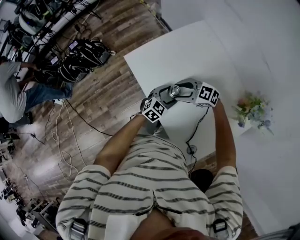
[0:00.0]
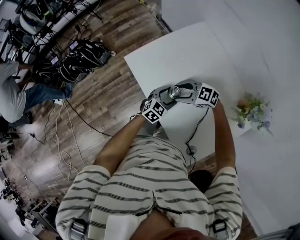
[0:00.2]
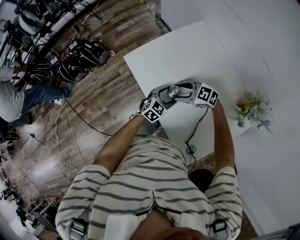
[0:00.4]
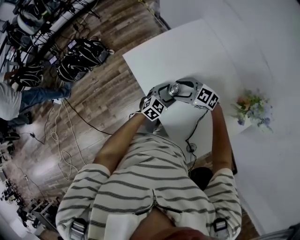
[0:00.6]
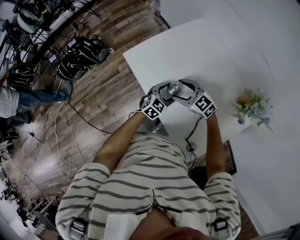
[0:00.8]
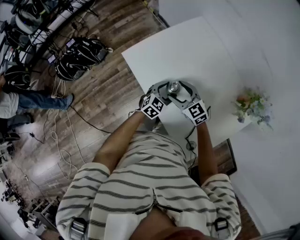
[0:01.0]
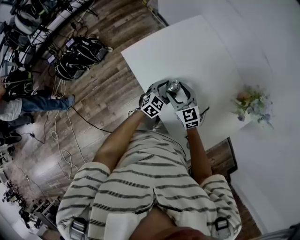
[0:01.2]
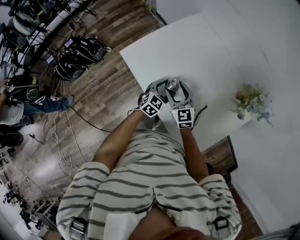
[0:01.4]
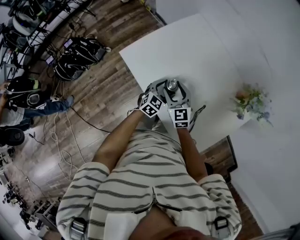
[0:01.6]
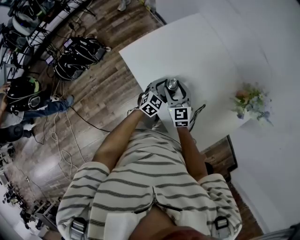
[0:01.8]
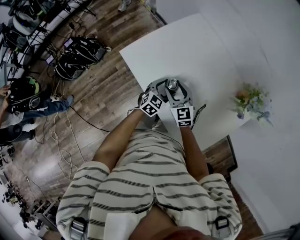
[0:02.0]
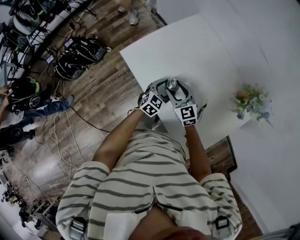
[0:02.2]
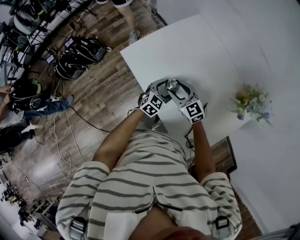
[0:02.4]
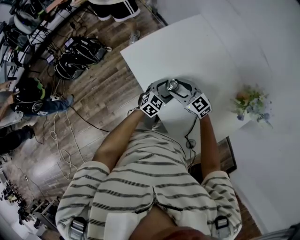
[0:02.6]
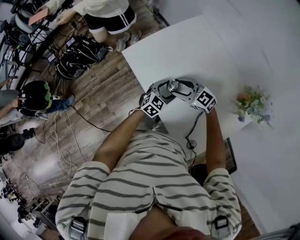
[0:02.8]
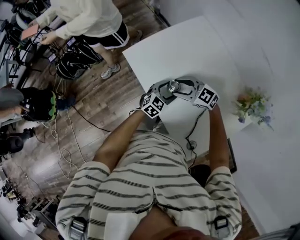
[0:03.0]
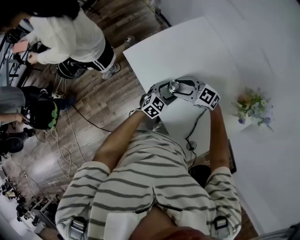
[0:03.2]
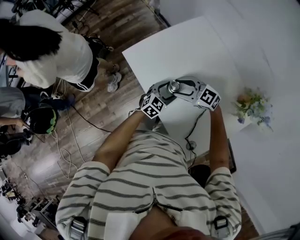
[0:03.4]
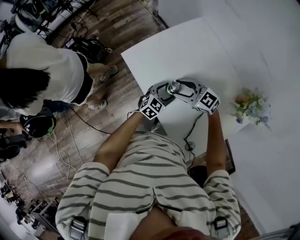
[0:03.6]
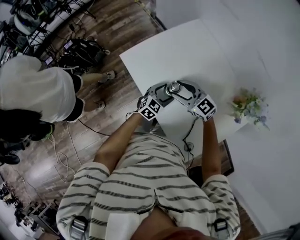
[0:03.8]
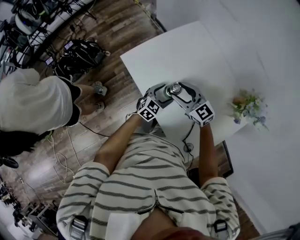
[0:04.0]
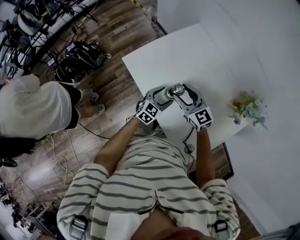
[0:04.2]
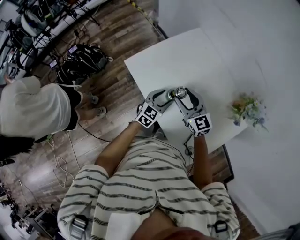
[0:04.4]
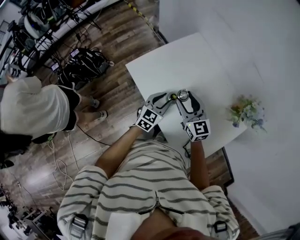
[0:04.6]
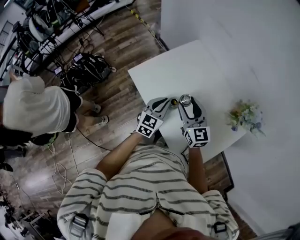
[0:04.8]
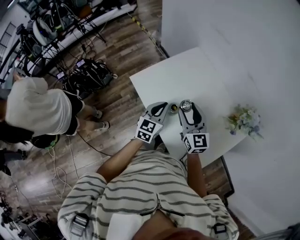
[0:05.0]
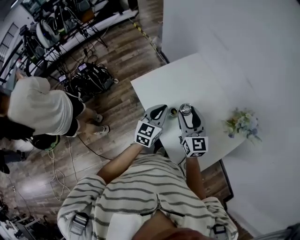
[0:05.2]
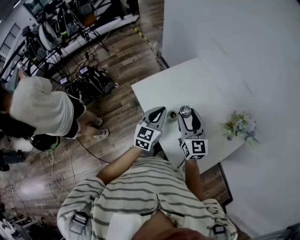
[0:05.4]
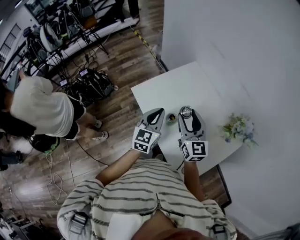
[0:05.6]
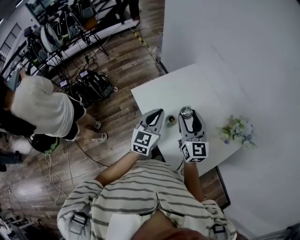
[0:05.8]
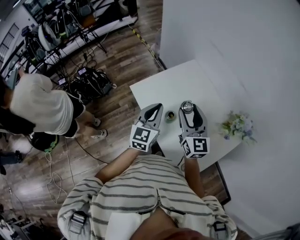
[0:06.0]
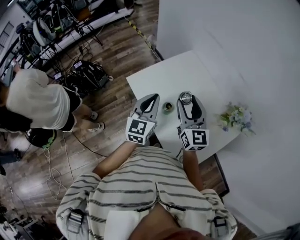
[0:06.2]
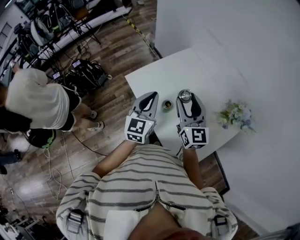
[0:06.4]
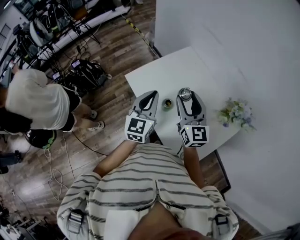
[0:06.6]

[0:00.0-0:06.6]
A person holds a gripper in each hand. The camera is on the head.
0:00.0 to 0:01.6: The right gripper swivels about 60 degrees.
0:01.6 to 0:03.2: The right gripper swivels about 60 degrees.
0:03.2 to 0:05.0: Both grippers travel together upward, about 15 cm. The left gripper swivels approximately 30 degrees, and closes up. Meanwhile the right gripper turns by approximately 60 degrees.
0:05.0 to 0:06.6: Both grippers travel together upward, roughly 10 cm.

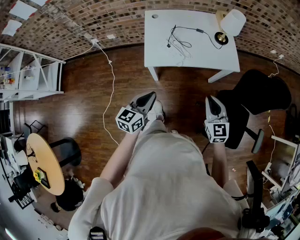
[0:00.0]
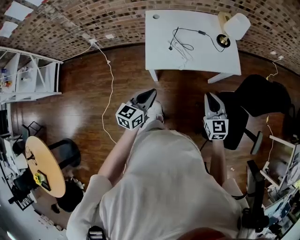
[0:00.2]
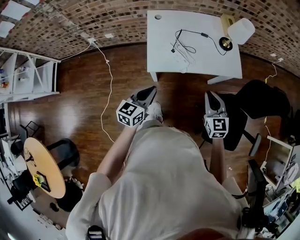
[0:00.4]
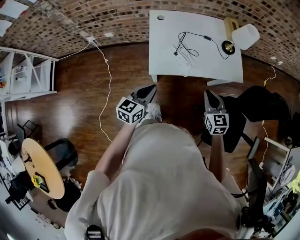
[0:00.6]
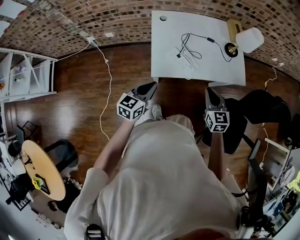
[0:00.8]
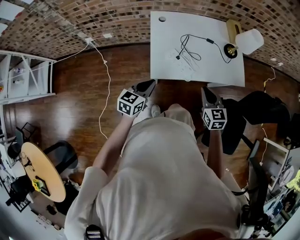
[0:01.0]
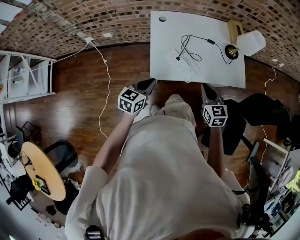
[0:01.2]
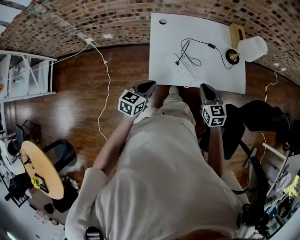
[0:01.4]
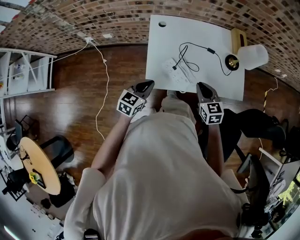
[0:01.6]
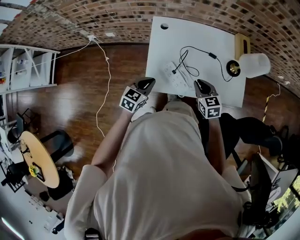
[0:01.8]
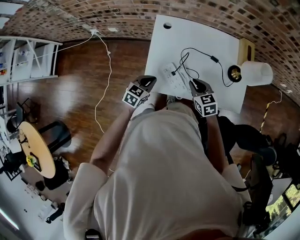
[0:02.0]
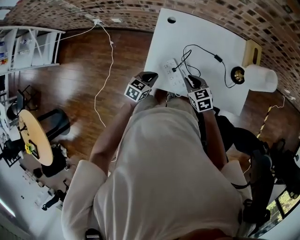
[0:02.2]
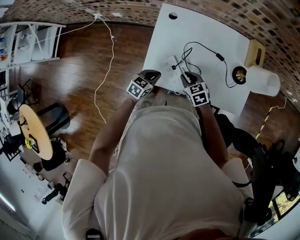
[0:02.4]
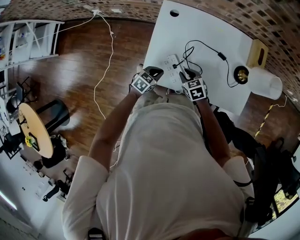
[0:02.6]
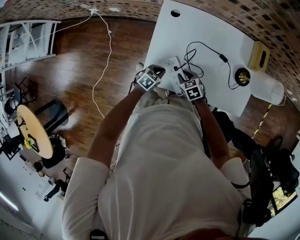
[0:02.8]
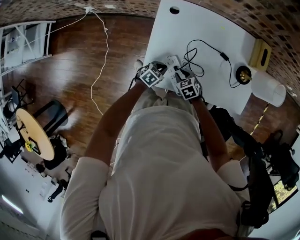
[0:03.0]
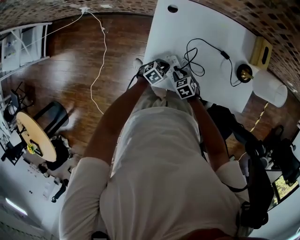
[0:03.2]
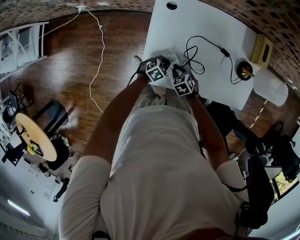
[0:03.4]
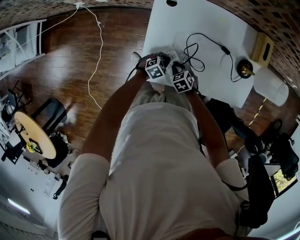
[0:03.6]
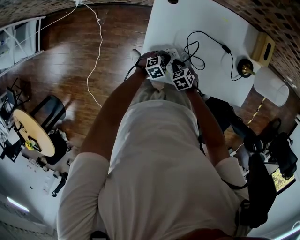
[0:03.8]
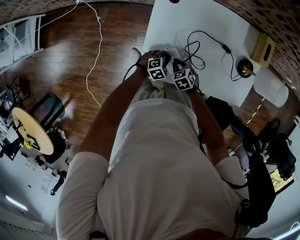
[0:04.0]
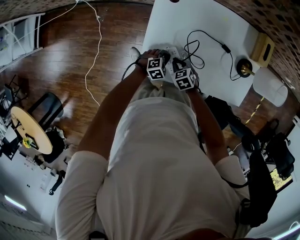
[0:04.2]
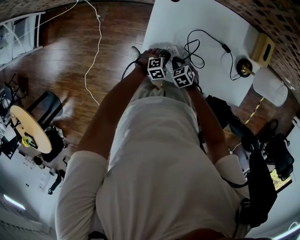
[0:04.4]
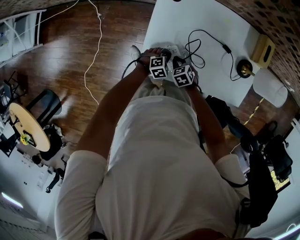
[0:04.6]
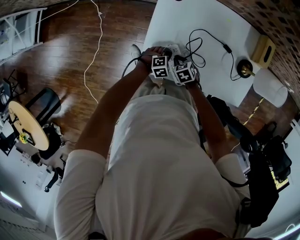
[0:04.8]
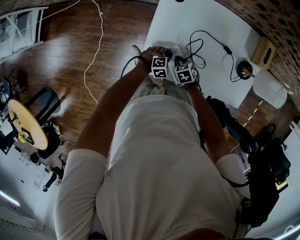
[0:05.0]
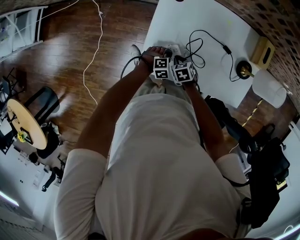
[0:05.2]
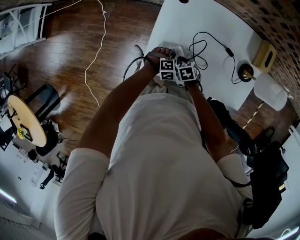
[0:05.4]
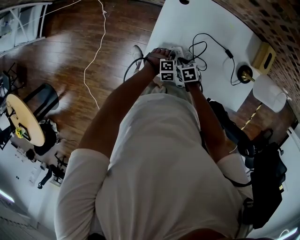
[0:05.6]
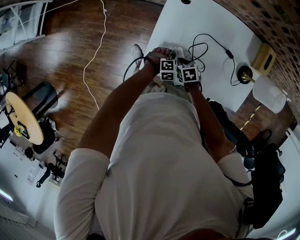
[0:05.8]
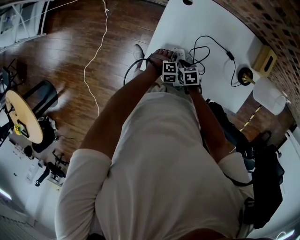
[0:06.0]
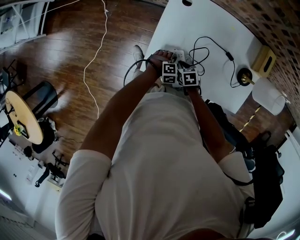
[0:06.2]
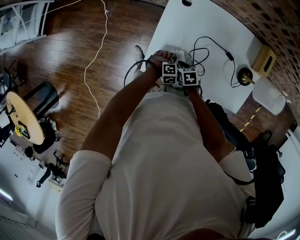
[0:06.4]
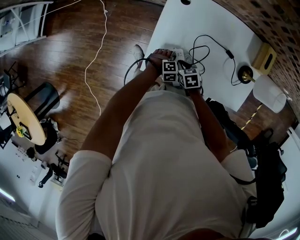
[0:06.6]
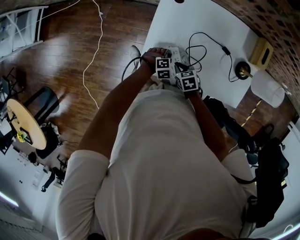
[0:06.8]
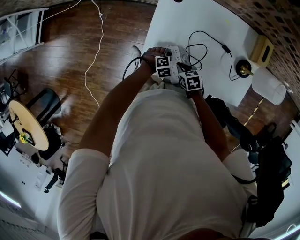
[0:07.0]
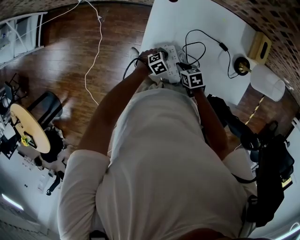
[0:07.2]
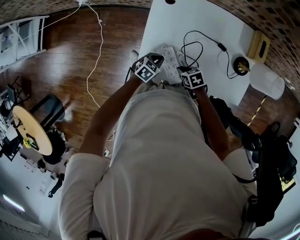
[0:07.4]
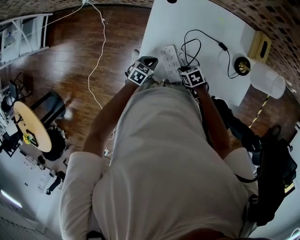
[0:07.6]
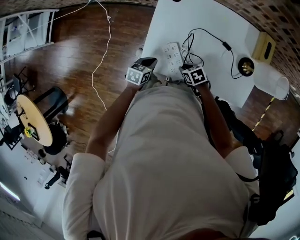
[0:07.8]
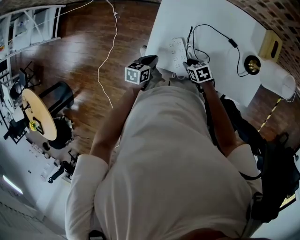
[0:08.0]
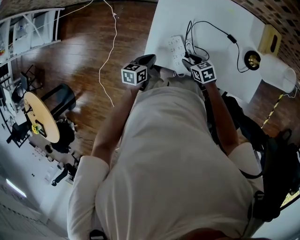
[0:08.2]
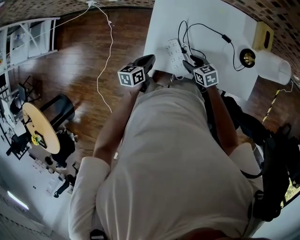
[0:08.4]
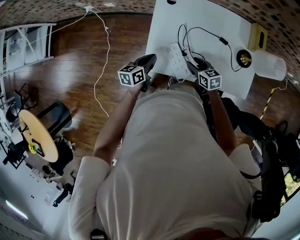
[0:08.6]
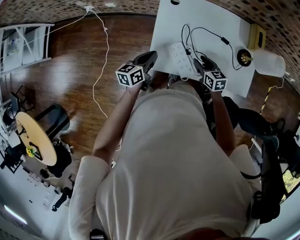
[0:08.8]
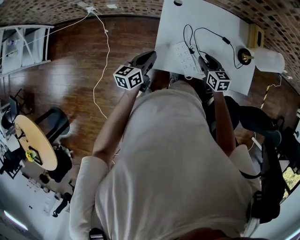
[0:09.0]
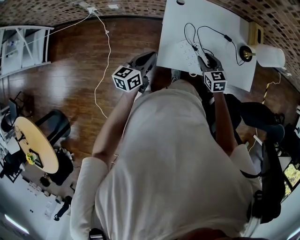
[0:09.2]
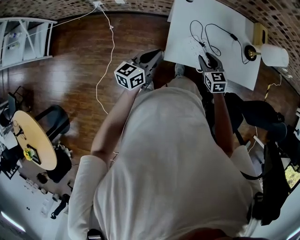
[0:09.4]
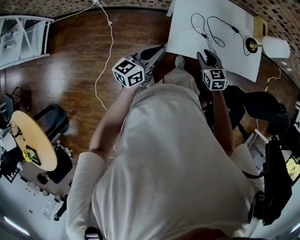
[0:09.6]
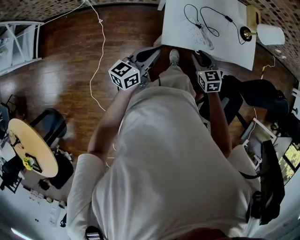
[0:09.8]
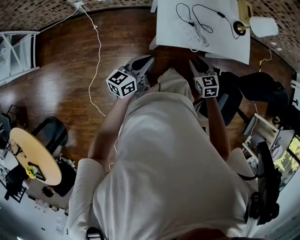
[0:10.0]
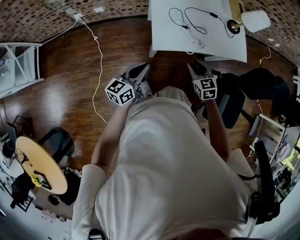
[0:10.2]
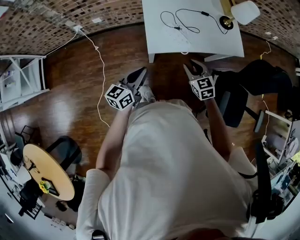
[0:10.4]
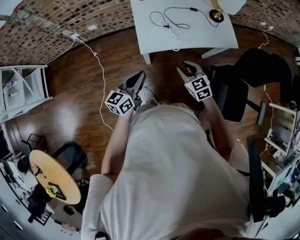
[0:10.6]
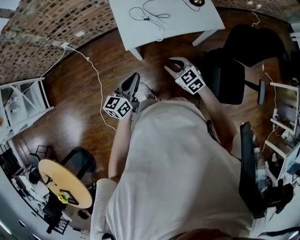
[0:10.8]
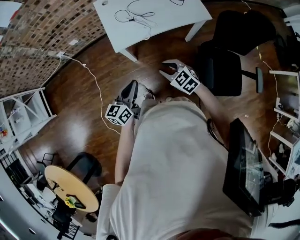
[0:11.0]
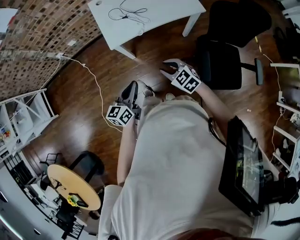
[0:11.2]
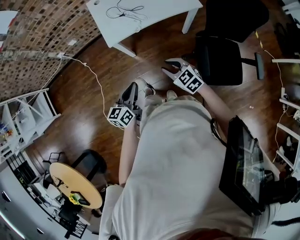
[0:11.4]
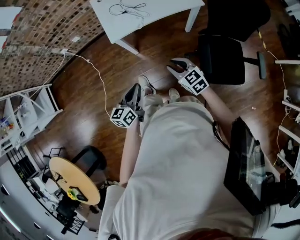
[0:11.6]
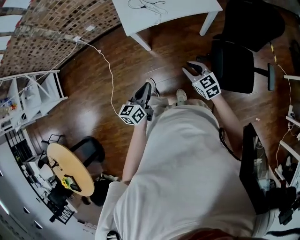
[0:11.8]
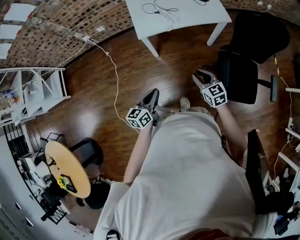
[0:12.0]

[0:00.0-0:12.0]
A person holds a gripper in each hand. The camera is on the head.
0:00.0 to 0:01.6: The right gripper travels forward and to the left by some 30 cm, while the left gripper heads forward, to the left and downward, covering some 30 cm.
0:01.6 to 0:03.0: Both grippers move downward, some 25 cm. The left gripper turns by some 30 degrees. The right gripper turns by some 40 degrees.
0:03.0 to 0:04.4: The left gripper swivels approximately 30 degrees.
0:04.4 to 0:06.0: There are only small adjustments of the grippers.
0:06.0 to 0:07.6: The right gripper moves approximately 5 cm. The left gripper goes approximately 5 cm upward, and twists about 50 degrees counterclockwise, seen from behind.
0:07.6 to 0:09.0: The grippers both shift upward by about 15 cm. The right gripper rotates about 40 degrees, and opens its fingers; the left gripper points its fingers roughly 30 degrees further upward.
0:09.0 to 0:10.4: Both grippers travel together backward, about 25 cm.
0:10.4 to 0:12.0: The grippers both shift backward and to the right by approximately 30 cm.

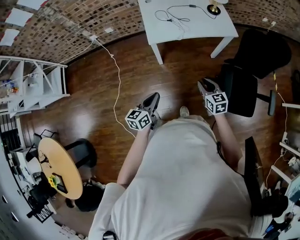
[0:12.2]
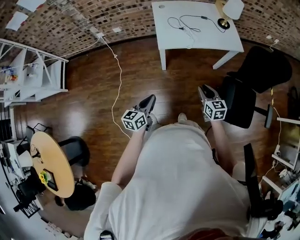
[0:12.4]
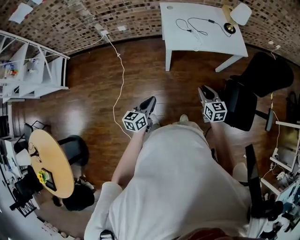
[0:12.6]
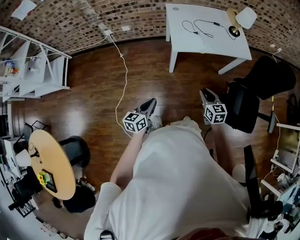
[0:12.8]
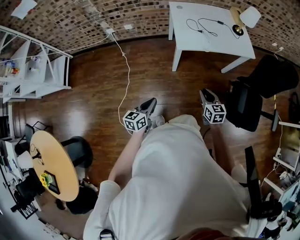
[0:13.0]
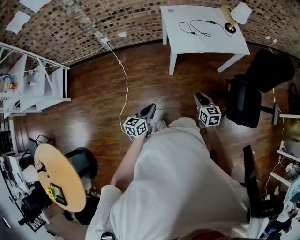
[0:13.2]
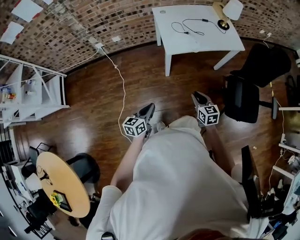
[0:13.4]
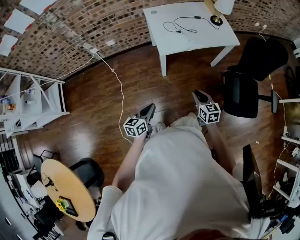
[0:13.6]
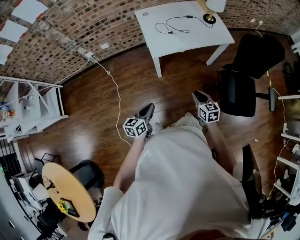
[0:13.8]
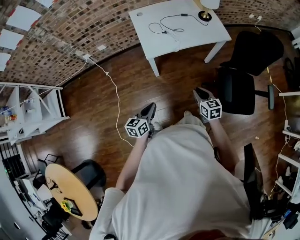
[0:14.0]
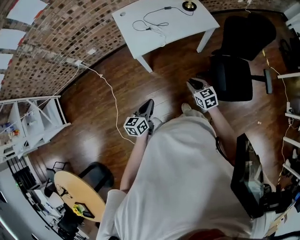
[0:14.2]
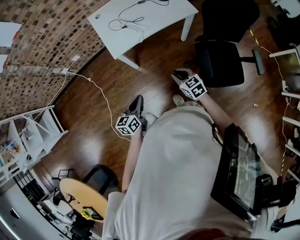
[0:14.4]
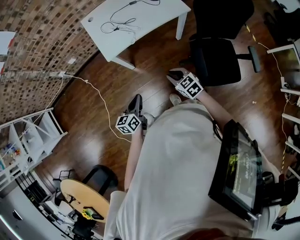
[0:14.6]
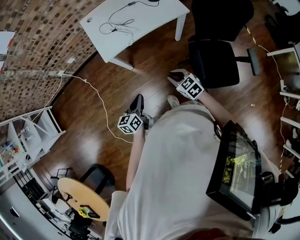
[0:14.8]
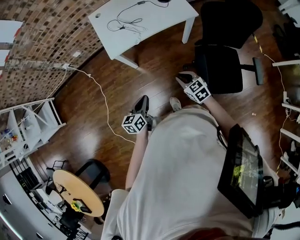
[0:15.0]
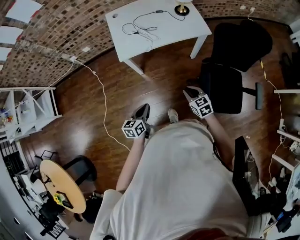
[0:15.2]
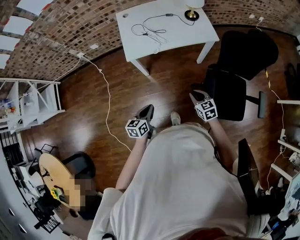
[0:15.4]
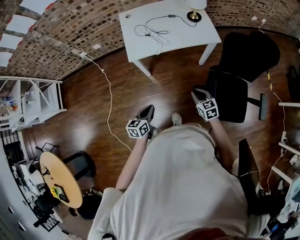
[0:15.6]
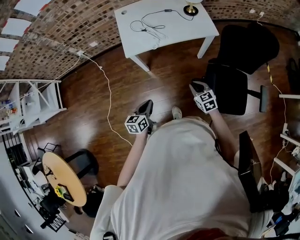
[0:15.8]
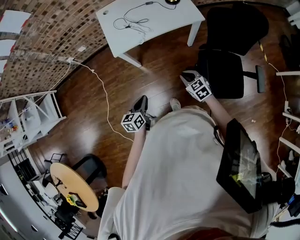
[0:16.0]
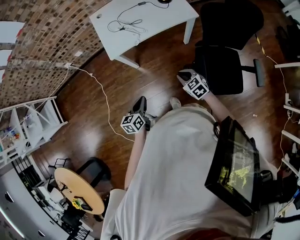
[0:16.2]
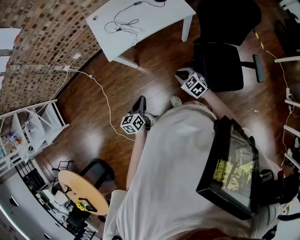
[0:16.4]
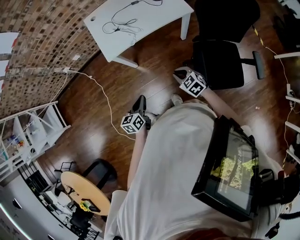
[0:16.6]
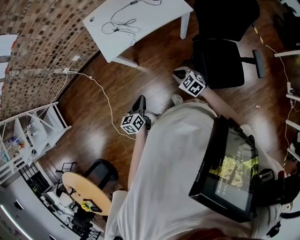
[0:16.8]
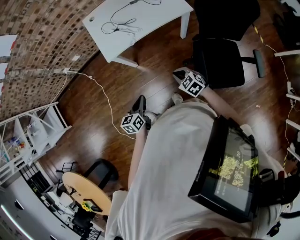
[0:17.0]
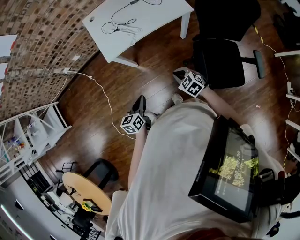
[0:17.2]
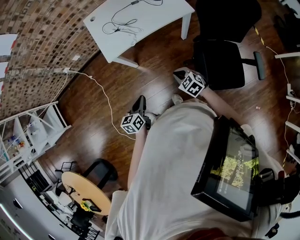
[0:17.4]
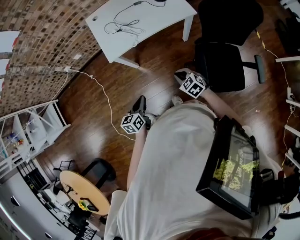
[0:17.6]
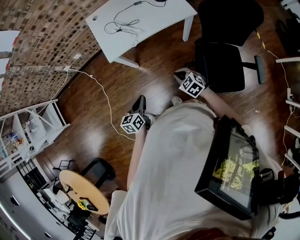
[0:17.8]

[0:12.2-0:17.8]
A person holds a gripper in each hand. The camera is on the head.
0:12.2 to 0:13.6: Both grippers travel together to the left, roughly 15 cm.
0:13.6 to 0:15.0: Both grippers move to the right, some 30 cm. The right gripper turns by roughly 20 degrees.
0:15.0 to 0:17.8: The grippers make only small movements.
